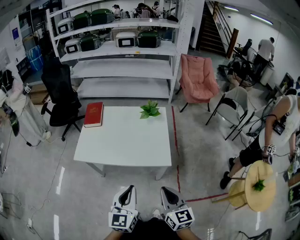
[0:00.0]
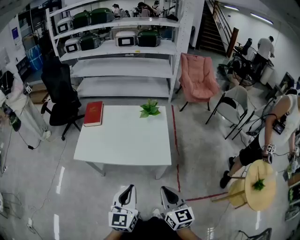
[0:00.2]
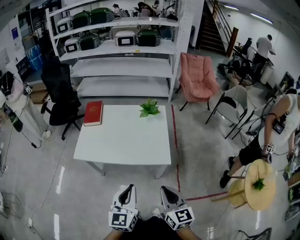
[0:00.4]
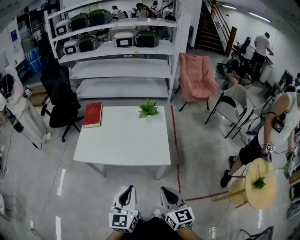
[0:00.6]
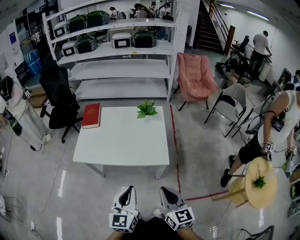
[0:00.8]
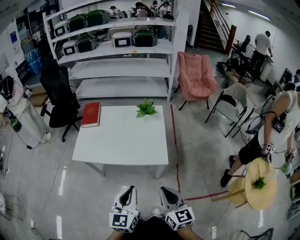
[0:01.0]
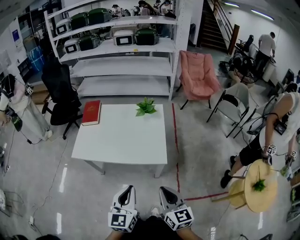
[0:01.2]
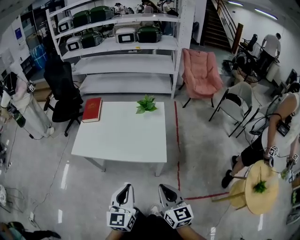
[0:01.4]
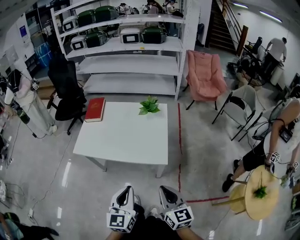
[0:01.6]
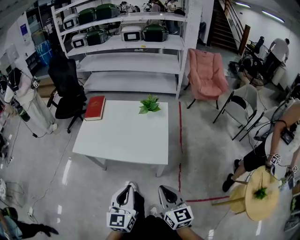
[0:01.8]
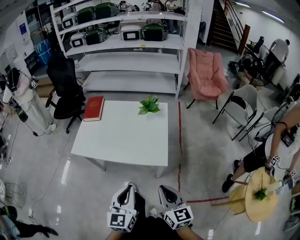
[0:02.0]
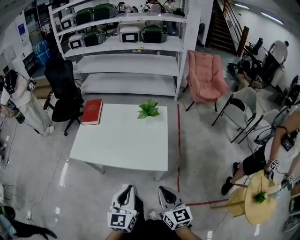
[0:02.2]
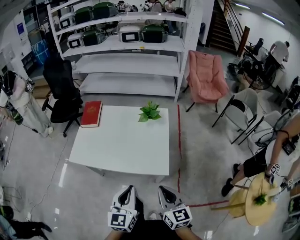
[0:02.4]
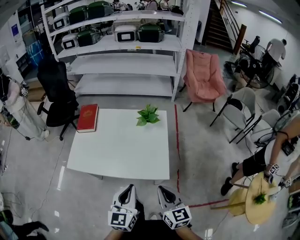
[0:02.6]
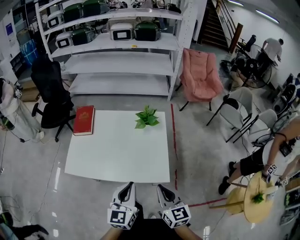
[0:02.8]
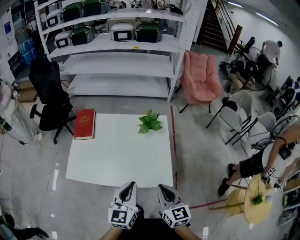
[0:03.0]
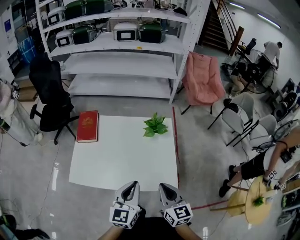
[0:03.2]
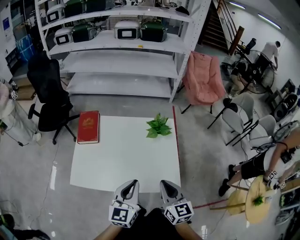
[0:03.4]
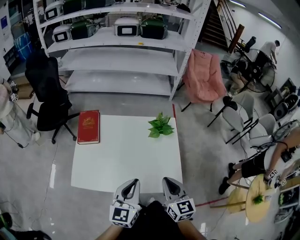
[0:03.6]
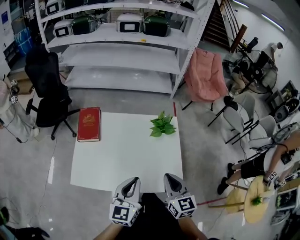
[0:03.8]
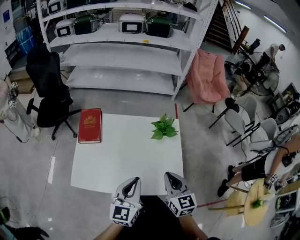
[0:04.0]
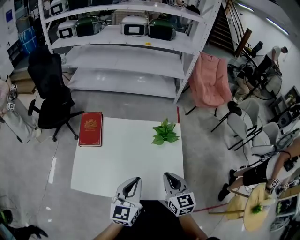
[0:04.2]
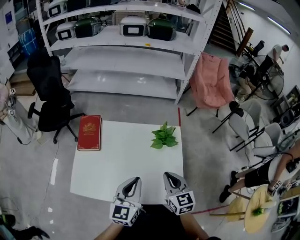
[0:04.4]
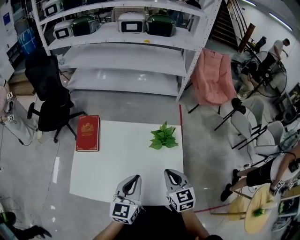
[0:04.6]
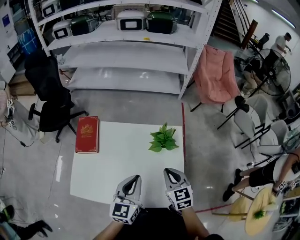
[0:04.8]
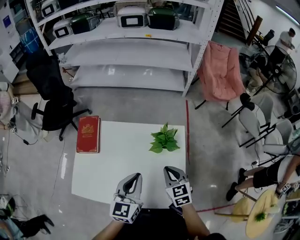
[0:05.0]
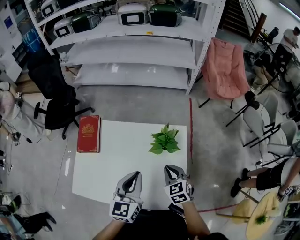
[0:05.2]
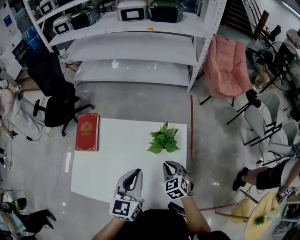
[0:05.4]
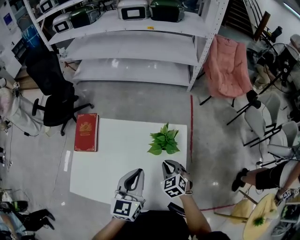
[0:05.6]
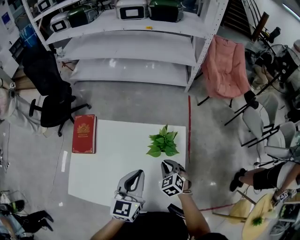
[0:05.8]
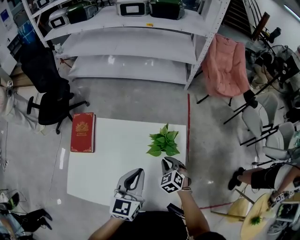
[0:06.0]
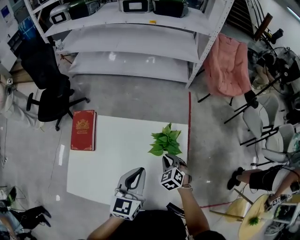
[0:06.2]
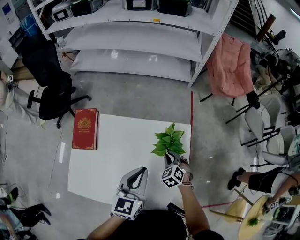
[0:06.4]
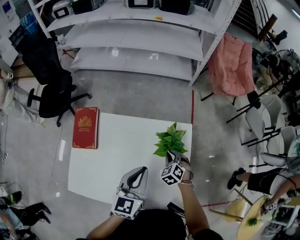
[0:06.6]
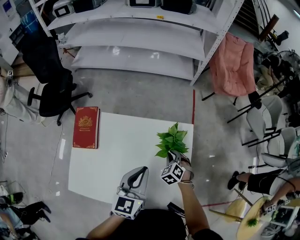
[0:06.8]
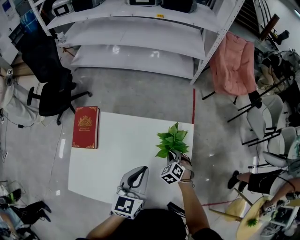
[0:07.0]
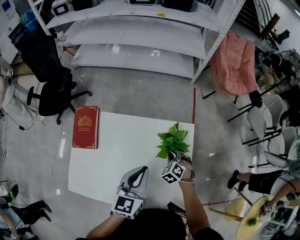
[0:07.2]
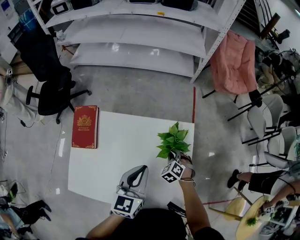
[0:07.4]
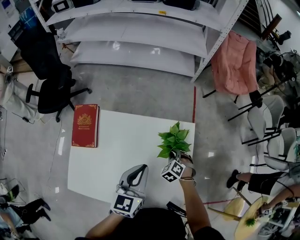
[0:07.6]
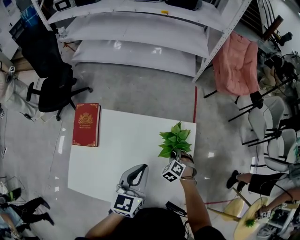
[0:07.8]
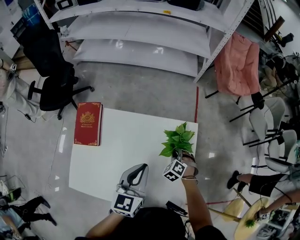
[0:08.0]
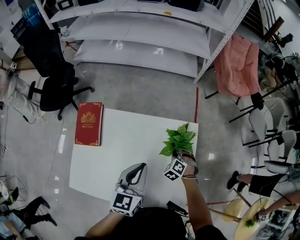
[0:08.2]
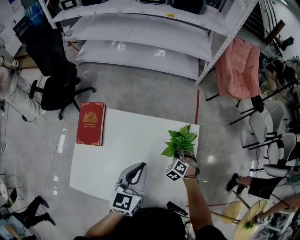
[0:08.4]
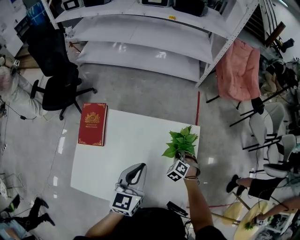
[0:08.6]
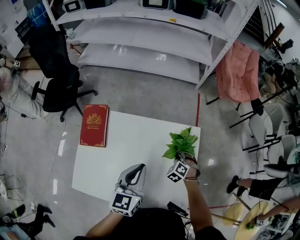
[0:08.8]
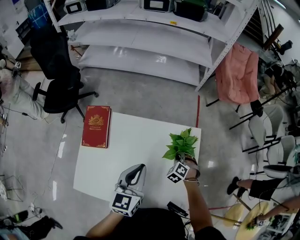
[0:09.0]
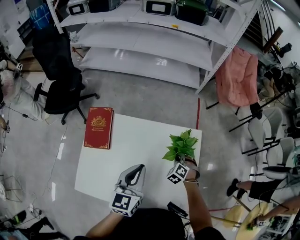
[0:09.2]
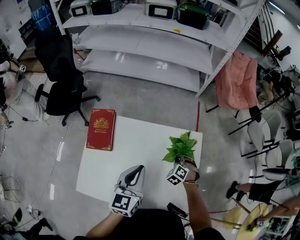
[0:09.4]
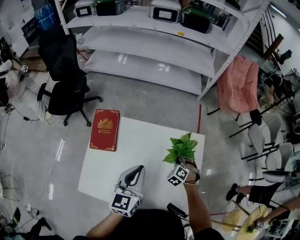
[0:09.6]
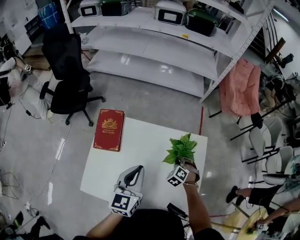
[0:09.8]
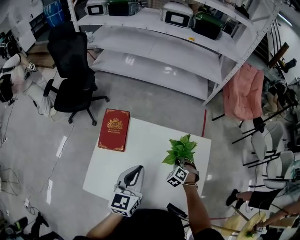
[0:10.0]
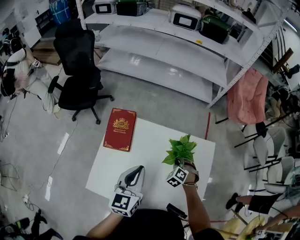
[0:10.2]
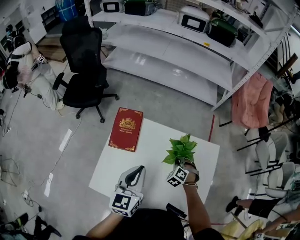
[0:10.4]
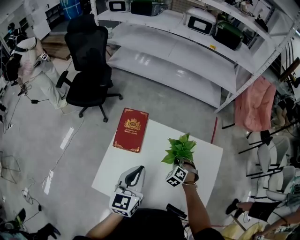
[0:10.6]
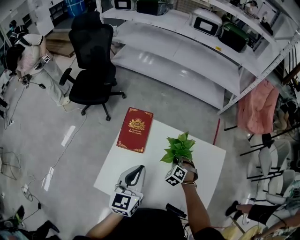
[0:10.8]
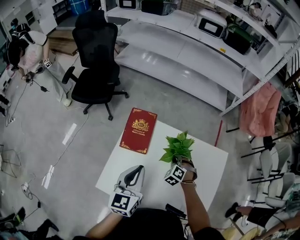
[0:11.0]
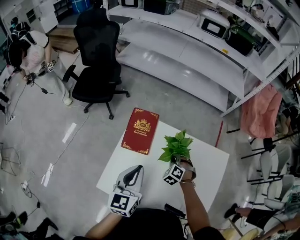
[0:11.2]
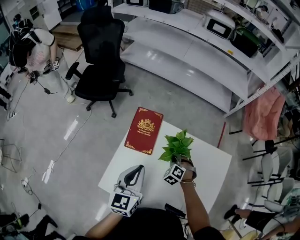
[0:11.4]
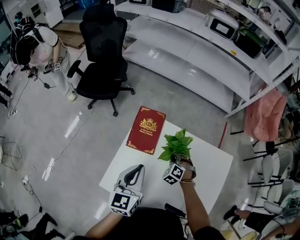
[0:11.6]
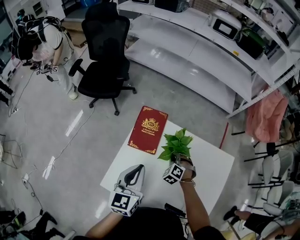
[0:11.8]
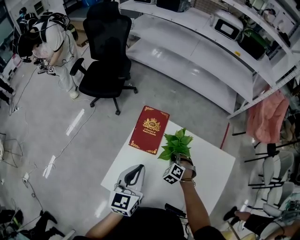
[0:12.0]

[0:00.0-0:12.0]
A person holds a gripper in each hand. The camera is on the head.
0:00.0 to 0:01.6: The grippers both shift to the right by some 5 cm.
0:01.6 to 0:03.0: The two grippers go some 25 cm forward.
0:03.0 to 0:04.4: The right gripper is displaced forward by some 20 cm; the left gripper shifts some 20 cm forward and to the left.
0:04.4 to 0:06.0: The right gripper shifts roughly 25 cm downward and forward, and turns by roughly 40 degrees, while the left gripper travels forward and to the right by about 15 cm.
0:06.0 to 0:07.6: The right gripper goes some 5 cm downward.
0:07.6 to 0:09.0: The left gripper goes about 5 cm to the left.
0:09.0 to 0:10.4: The grippers both shift to the left by roughly 15 cm.
0:10.4 to 0:12.0: Both grippers travel together to the left, roughly 15 cm.

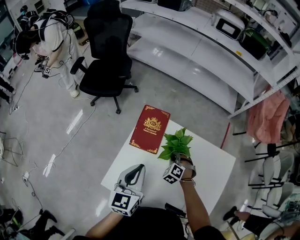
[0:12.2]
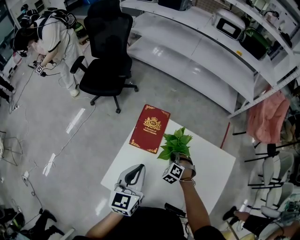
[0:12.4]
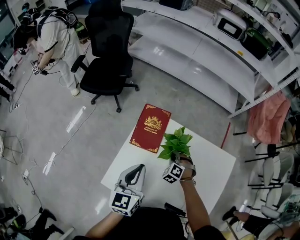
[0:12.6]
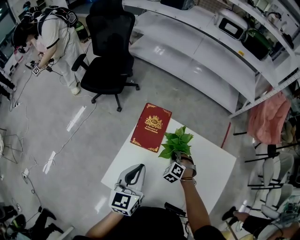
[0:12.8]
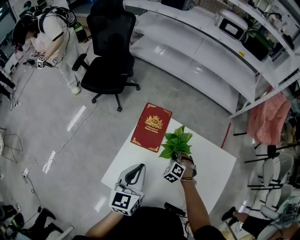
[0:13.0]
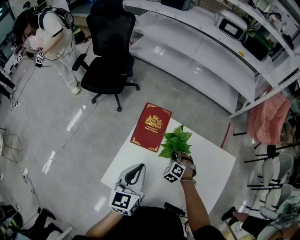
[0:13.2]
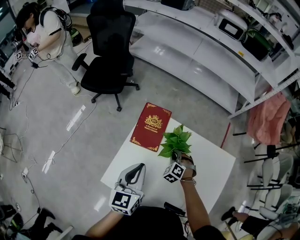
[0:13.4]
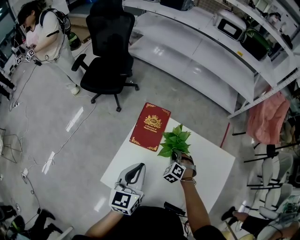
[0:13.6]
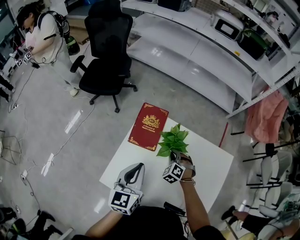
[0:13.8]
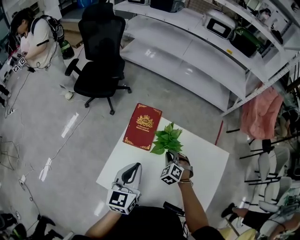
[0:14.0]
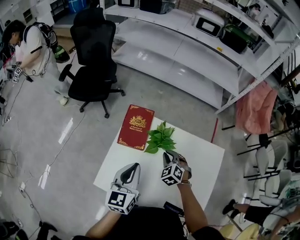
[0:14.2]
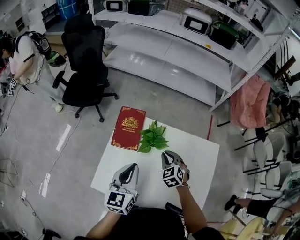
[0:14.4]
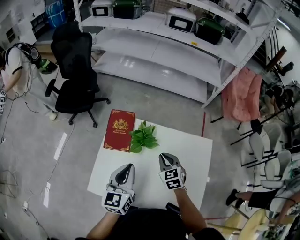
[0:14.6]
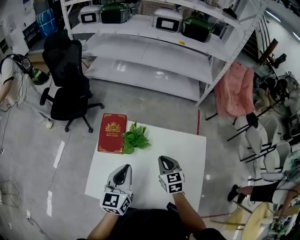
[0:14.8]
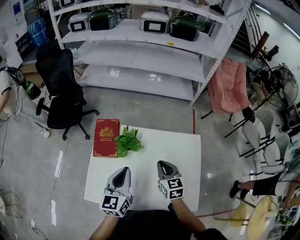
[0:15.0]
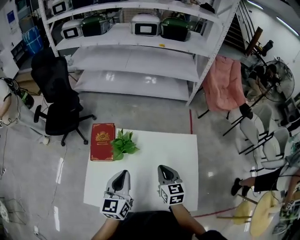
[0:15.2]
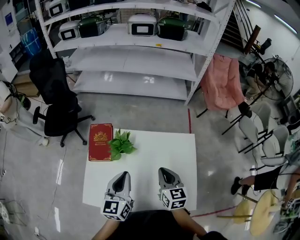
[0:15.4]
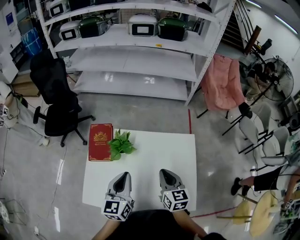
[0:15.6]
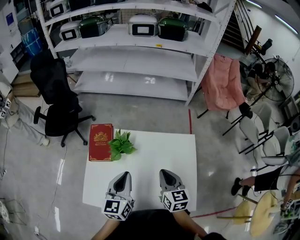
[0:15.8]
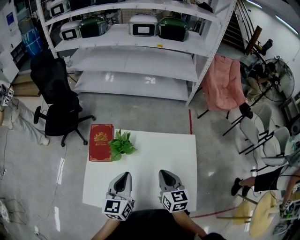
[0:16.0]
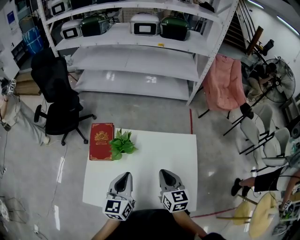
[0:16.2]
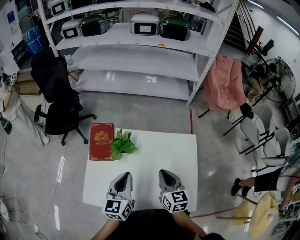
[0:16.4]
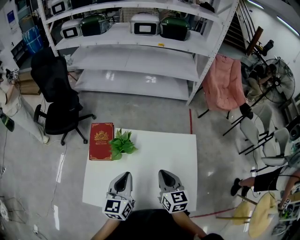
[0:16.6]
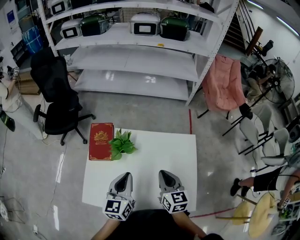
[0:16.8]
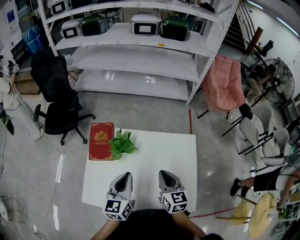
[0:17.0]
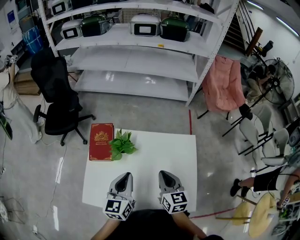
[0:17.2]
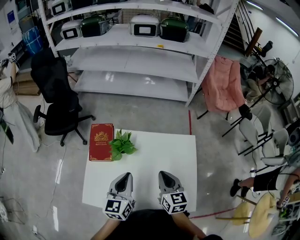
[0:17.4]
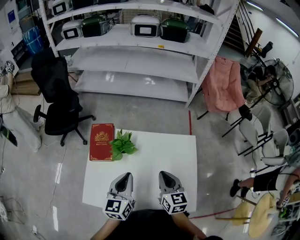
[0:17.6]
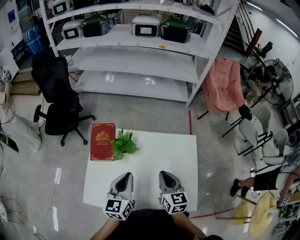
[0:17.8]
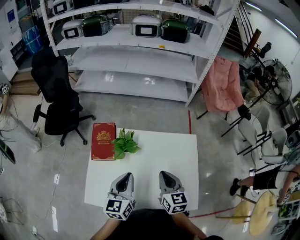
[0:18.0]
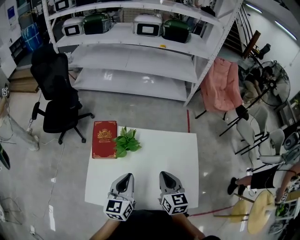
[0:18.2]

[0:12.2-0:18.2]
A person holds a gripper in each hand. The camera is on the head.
0:12.2 to 0:13.8: There are only small adjustments of the grippers.
0:13.8 to 0:15.2: The right gripper is displaced to the right, upward and backward by roughly 30 cm, and twists some 70 degrees clockwise, seen from behind; the left gripper heads to the right, covering about 15 cm.
0:15.2 to 0:16.6: The grippers make only small movements.
0:16.6 to 0:18.2: The grippers make only small movements.

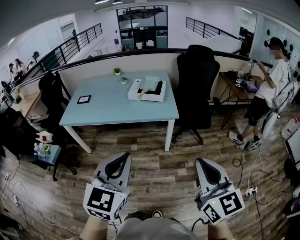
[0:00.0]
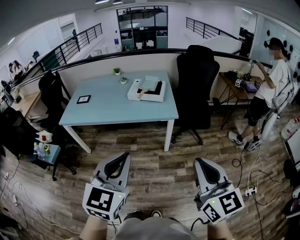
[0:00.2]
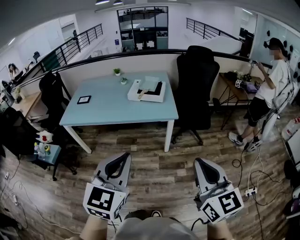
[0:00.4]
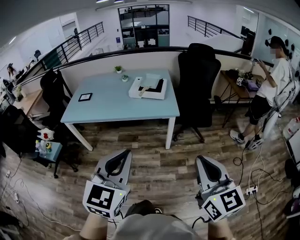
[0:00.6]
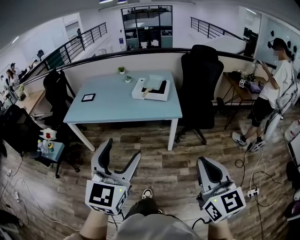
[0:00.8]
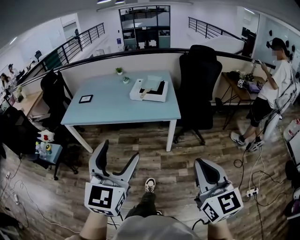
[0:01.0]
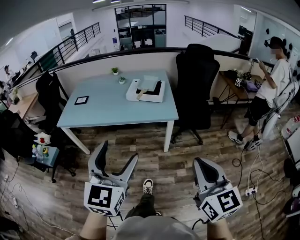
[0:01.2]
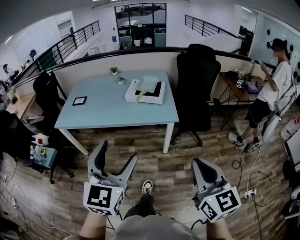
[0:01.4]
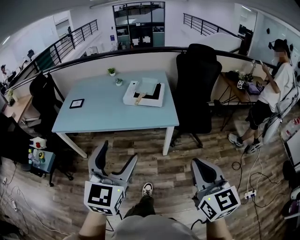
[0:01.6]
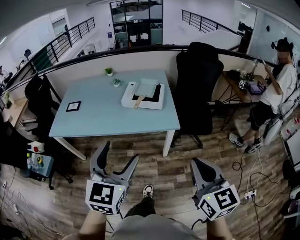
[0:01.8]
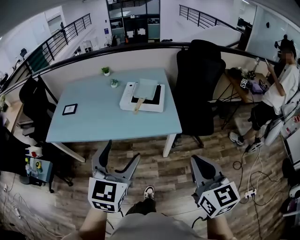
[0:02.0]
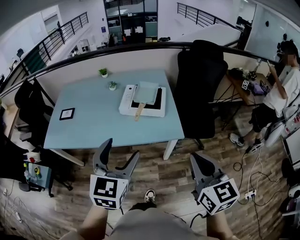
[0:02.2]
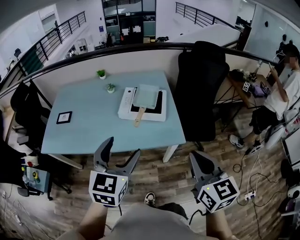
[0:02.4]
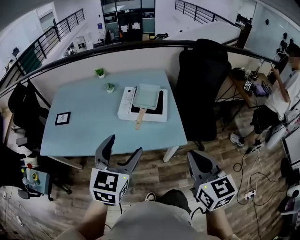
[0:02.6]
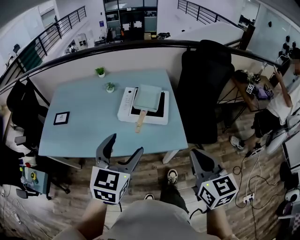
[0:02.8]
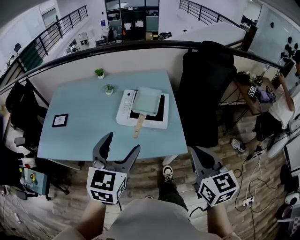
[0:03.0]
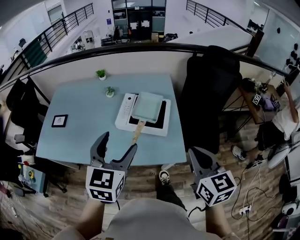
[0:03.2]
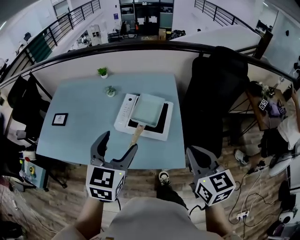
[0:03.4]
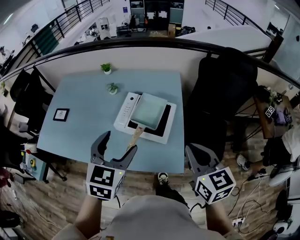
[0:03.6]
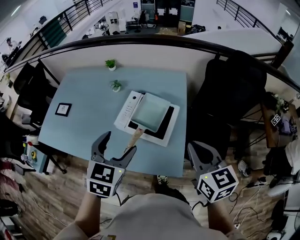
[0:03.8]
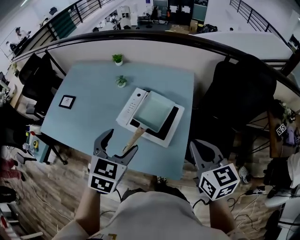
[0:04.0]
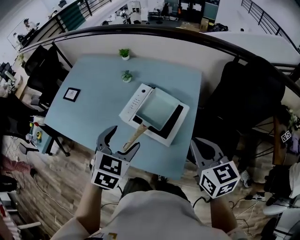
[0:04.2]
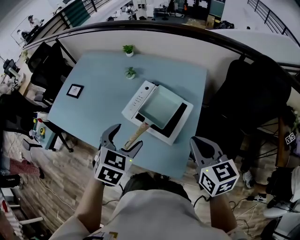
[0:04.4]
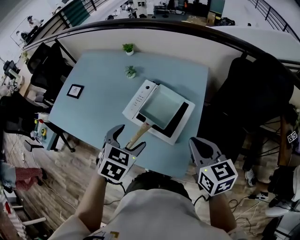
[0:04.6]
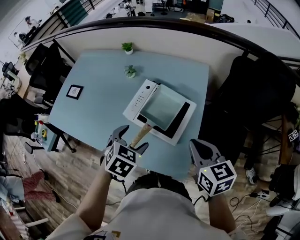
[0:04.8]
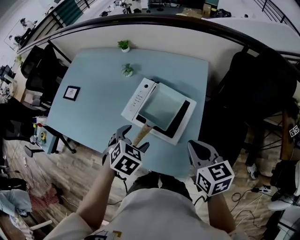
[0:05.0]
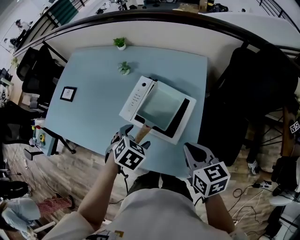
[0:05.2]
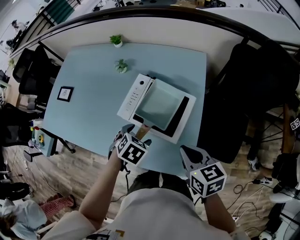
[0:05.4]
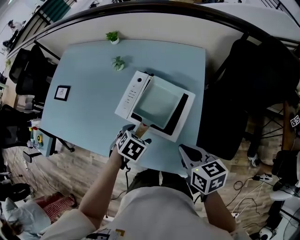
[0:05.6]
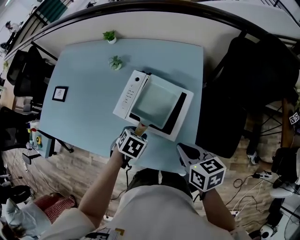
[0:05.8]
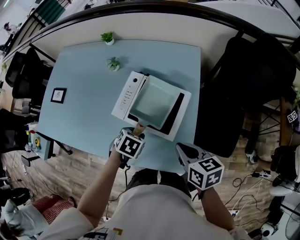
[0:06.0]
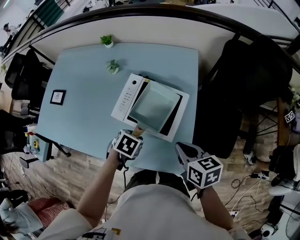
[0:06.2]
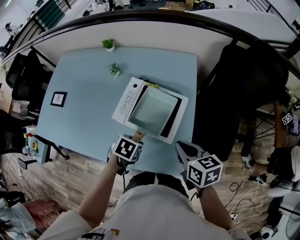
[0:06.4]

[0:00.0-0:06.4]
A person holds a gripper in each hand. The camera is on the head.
0:00.0 to 0:01.6: Both grippers travel together forward, some 15 cm. The left gripper opens up.
0:01.6 to 0:03.2: Both grippers are carried forward, about 40 cm.
0:03.2 to 0:04.8: The right gripper moves forward and downward, about 25 cm, and turns by some 30 degrees. The left gripper travels downward, forward and to the right by roughly 25 cm, and points its fingers roughly 40 degrees further downward.
0:04.8 to 0:06.4: The left gripper heads downward, covering about 15 cm, turns by roughly 30 degrees, and closes, while the right gripper is displaced downward by approximately 5 cm.
